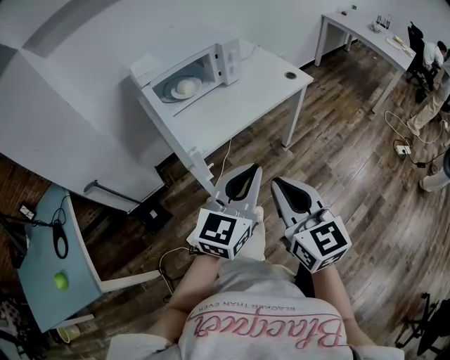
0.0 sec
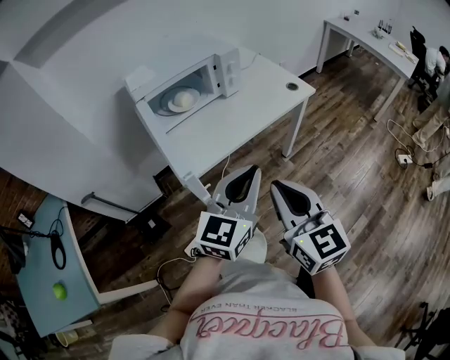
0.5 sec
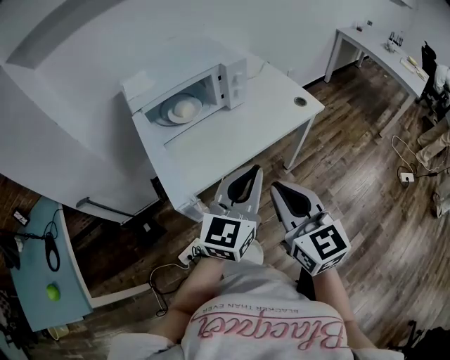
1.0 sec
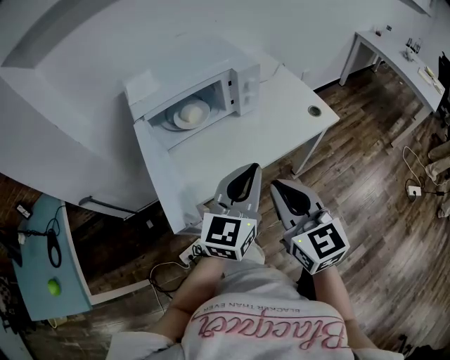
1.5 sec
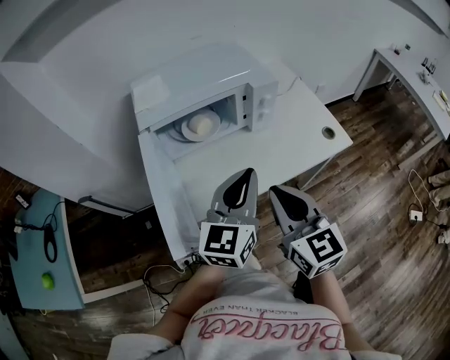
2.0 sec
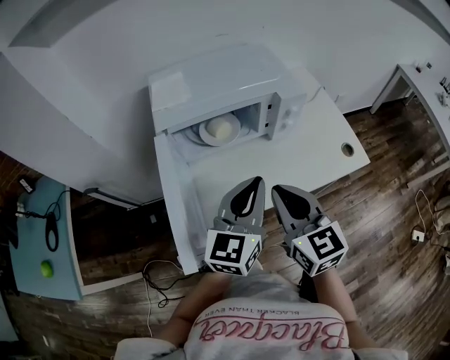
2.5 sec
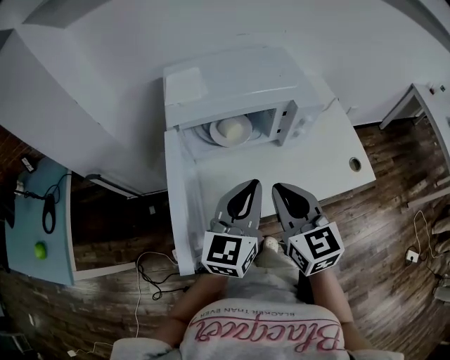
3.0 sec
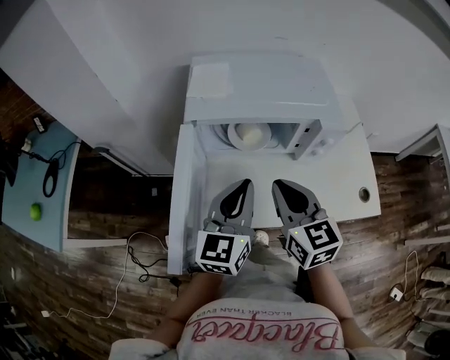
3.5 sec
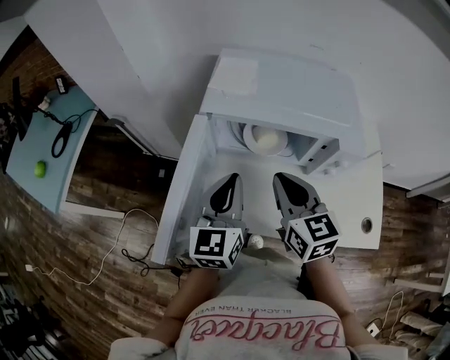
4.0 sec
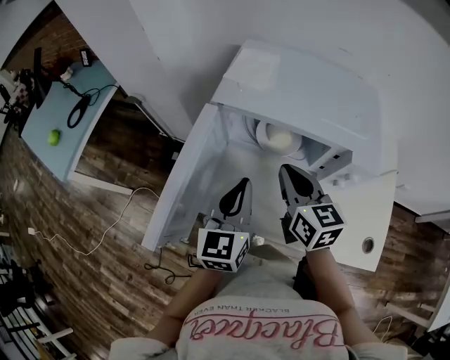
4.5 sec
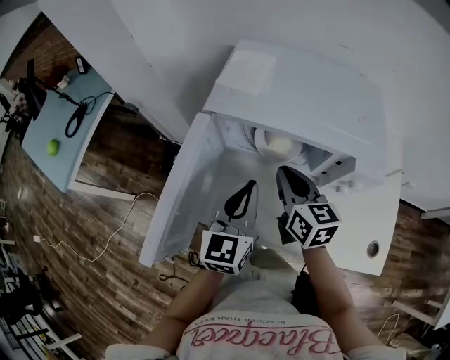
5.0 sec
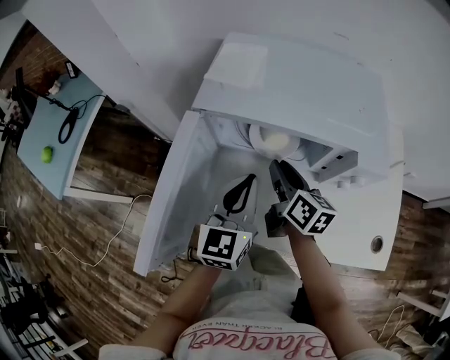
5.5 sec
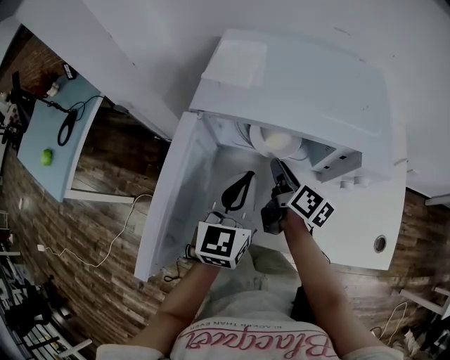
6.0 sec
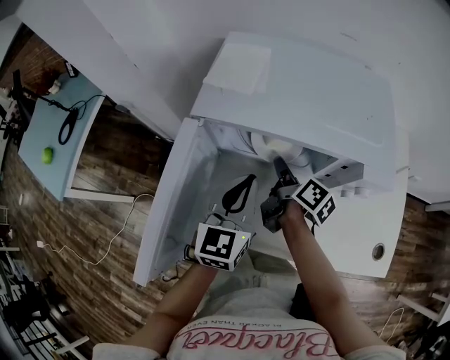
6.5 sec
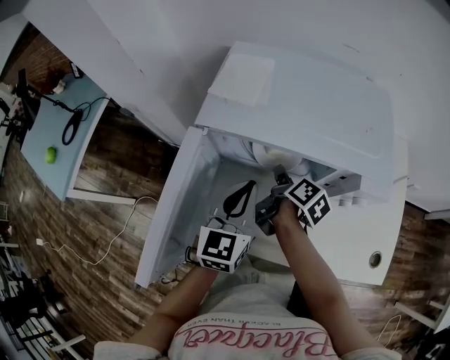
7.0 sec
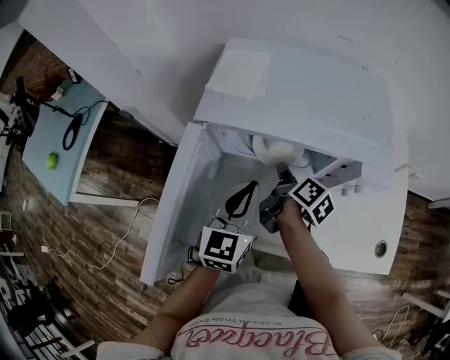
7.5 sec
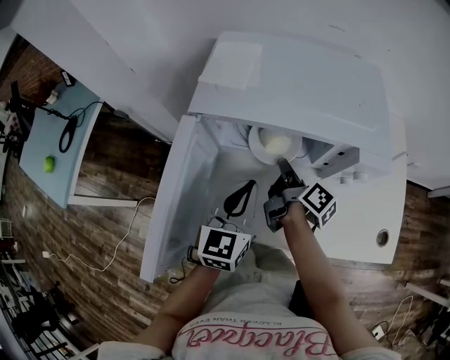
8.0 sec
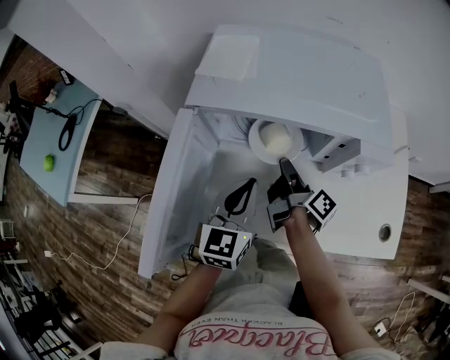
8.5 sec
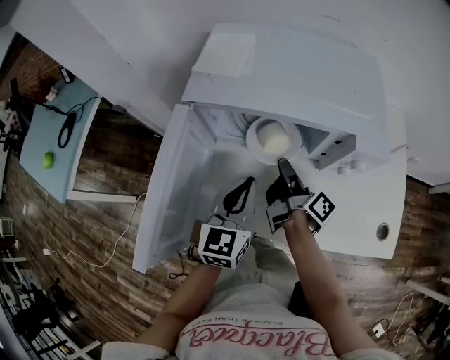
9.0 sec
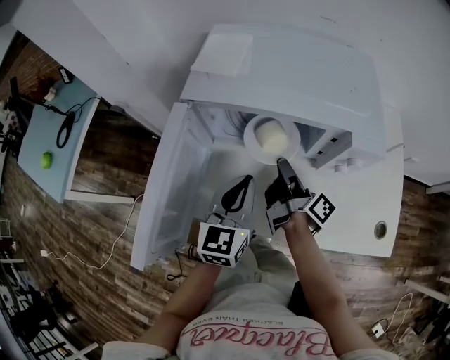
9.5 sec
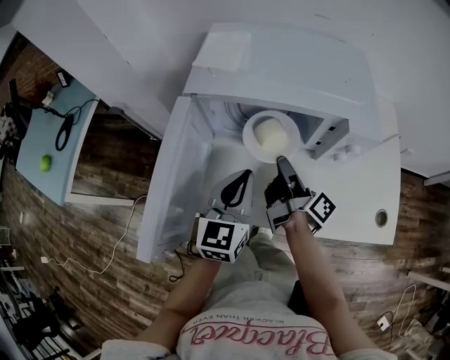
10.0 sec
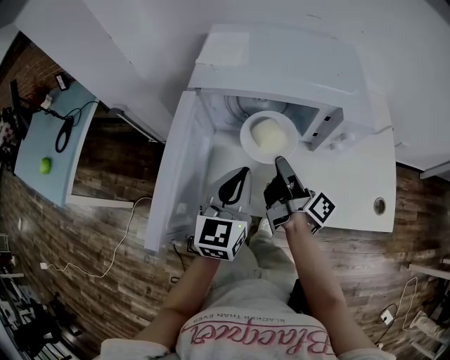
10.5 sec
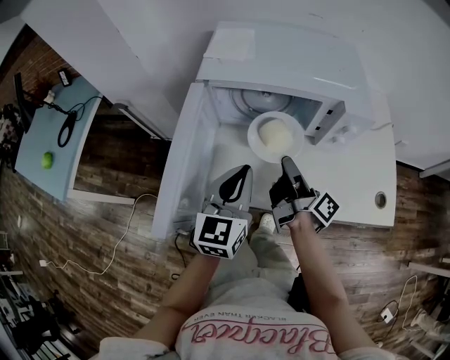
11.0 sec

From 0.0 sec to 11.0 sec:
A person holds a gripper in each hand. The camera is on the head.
From 0.0 sec to 2.0 sec: Both grippers travel together forward, approximately 30 cm. The left gripper changes its angle by approximately 20 degrees.
From 2.0 sec to 3.5 sec: The left gripper heads forward and to the left, covering some 15 cm, and swivels some 20 degrees. Meanwhile the right gripper moves forward, about 15 cm.
From 3.5 sec to 5.5 sec: The left gripper travels downward and forward by roughly 10 cm, while the right gripper is displaced forward and downward by some 20 cm, changes its angle by approximately 40 degrees, and opens.
From 5.5 sec to 7.5 sec: The right gripper shifts about 5 cm downward, and changes its angle by approximately 30 degrees.
From 7.5 sec to 9.0 sec: The right gripper turns by some 30 degrees.
From 9.0 sec to 11.0 sec: The grippers both shift backward by roughly 10 cm.

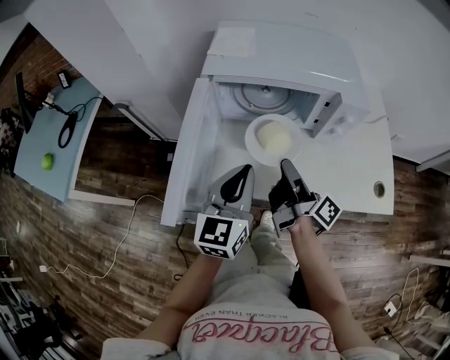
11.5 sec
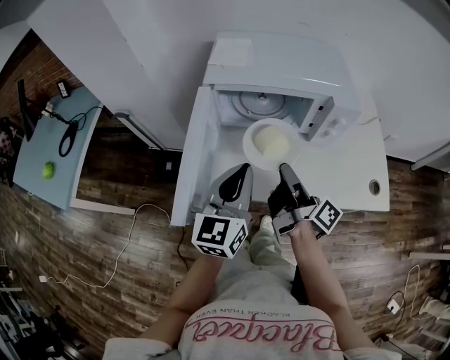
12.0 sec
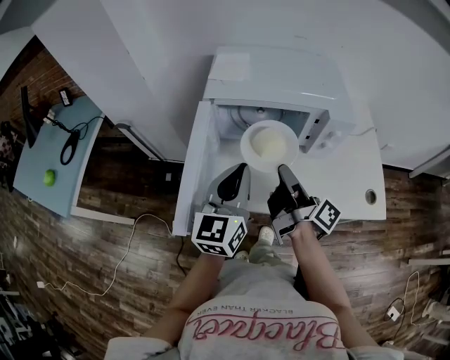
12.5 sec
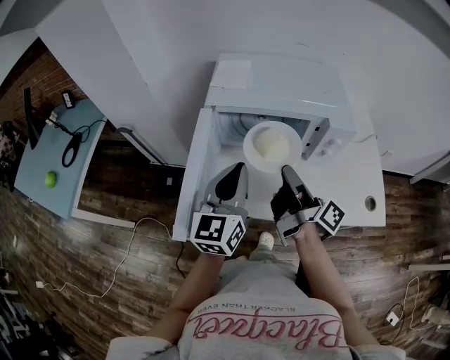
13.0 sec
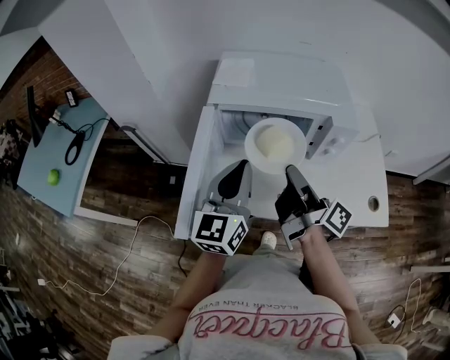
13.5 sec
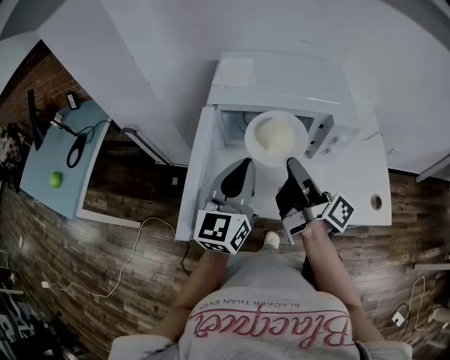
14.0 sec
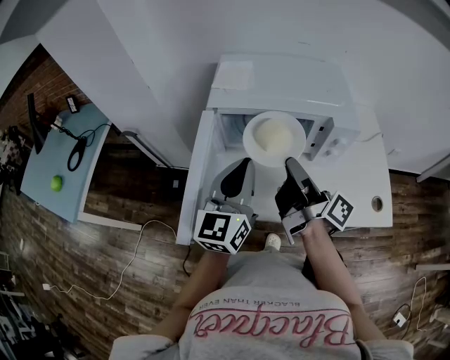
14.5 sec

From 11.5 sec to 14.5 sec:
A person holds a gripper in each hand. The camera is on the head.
From 11.5 sec to 13.0 sec: The grippers both shift upward by approximately 5 cm.
From 13.0 sec to 14.5 sec: There are only small adjustments of the grippers.

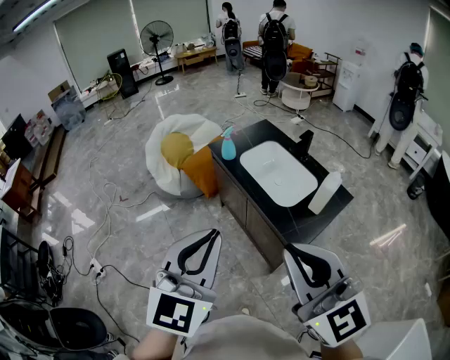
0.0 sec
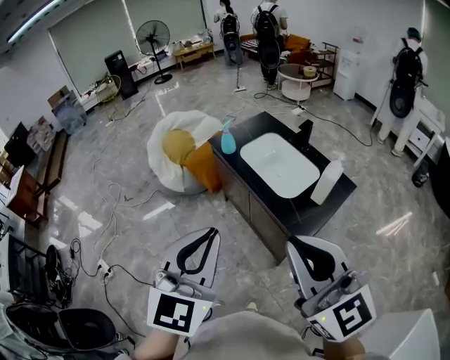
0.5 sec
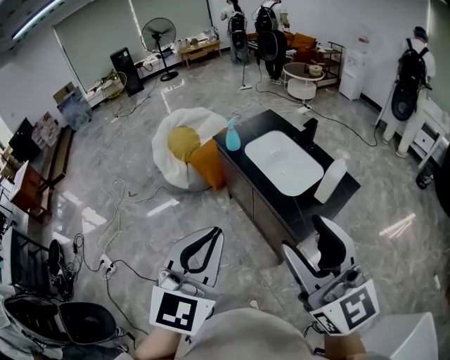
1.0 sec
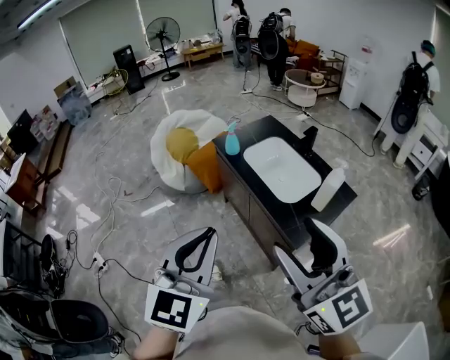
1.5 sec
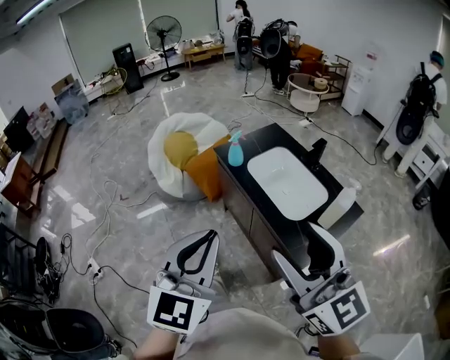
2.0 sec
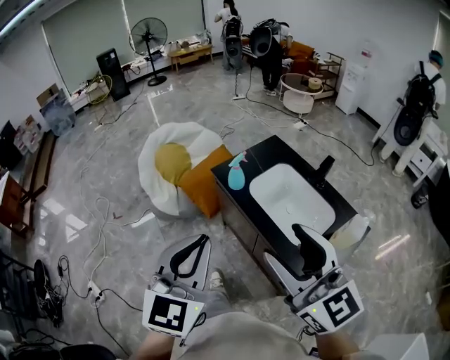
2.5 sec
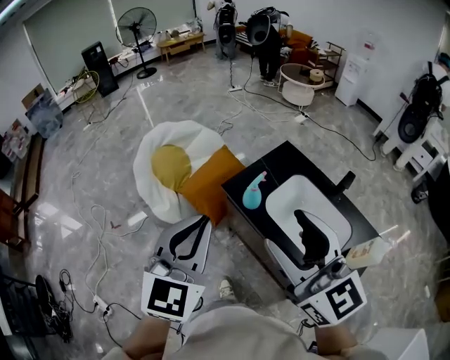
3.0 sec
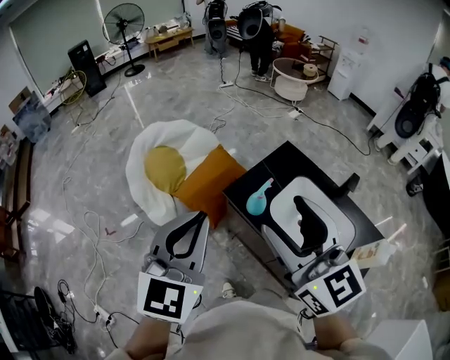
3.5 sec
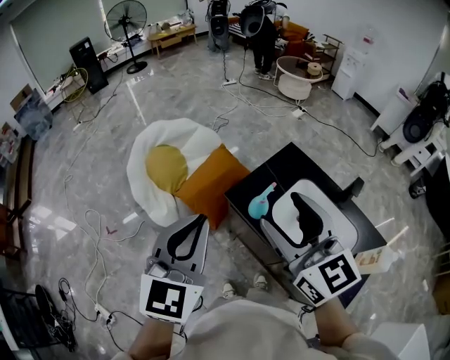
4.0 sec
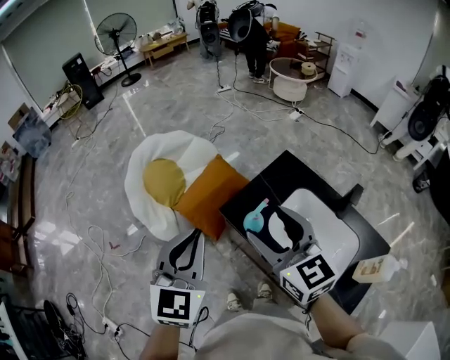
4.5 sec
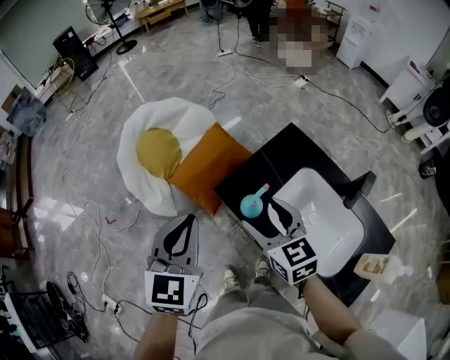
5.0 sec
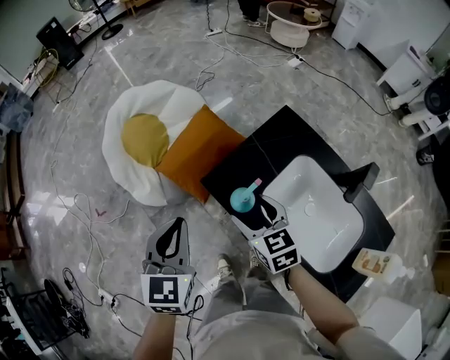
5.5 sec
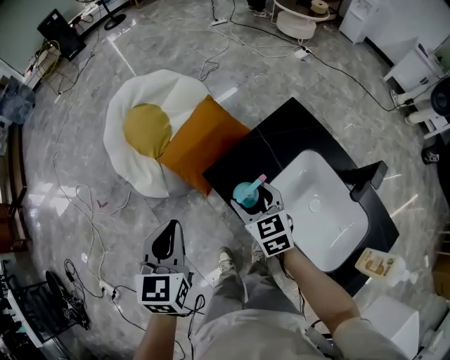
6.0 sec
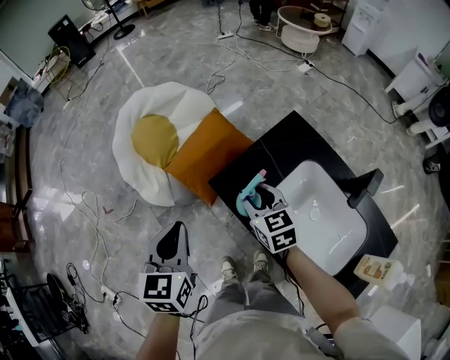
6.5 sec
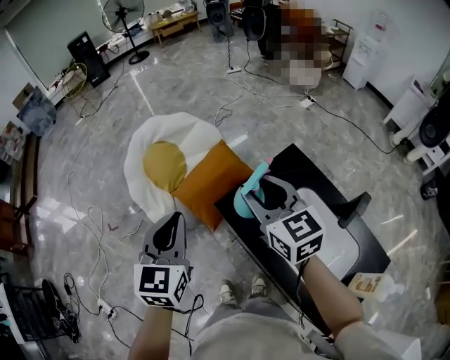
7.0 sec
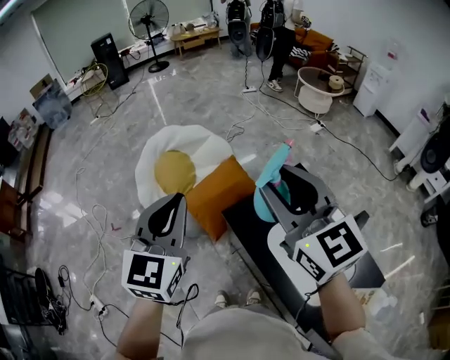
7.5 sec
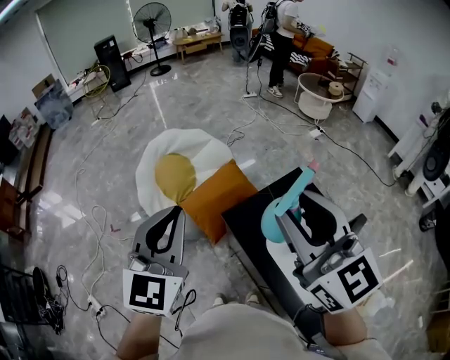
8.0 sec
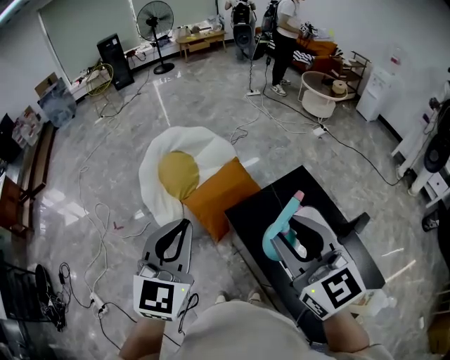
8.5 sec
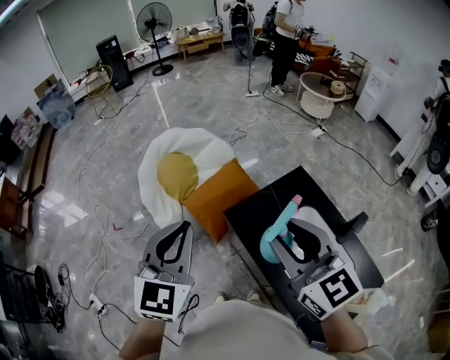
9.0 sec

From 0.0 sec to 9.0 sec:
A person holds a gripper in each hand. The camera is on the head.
From 0.0 sec to 2.0 sec: Both grippers move forward, about 10 cm. The right gripper opens.
From 2.0 sec to 4.5 sec: The pair of grippers is taken forward, approximately 50 cm.
From 4.5 sec to 7.0 sec: The left gripper goes roughly 10 cm forward, and goes downward and returns, approximately 20 cm each way; the right gripper goes some 10 cm forward, reaches some 30 cm downward, then returns, and closes.
From 7.0 sec to 9.0 sec: The right gripper heads backward and upward, covering some 15 cm, while the left gripper heads upward and backward, covering about 10 cm.

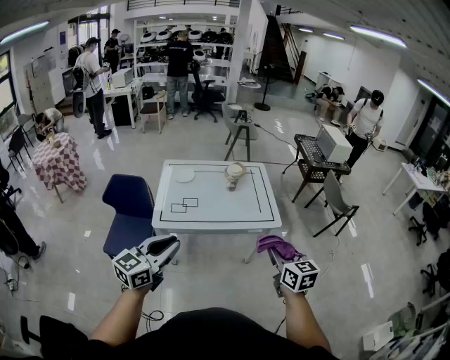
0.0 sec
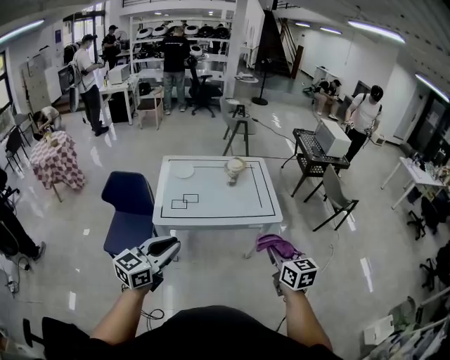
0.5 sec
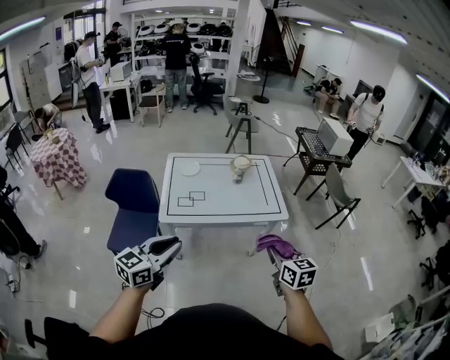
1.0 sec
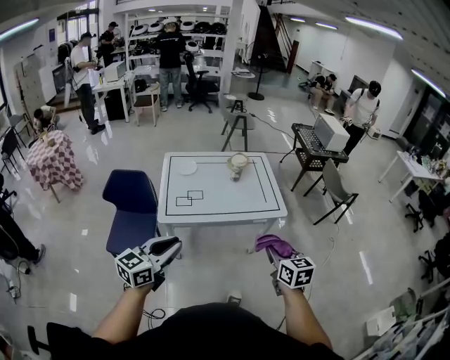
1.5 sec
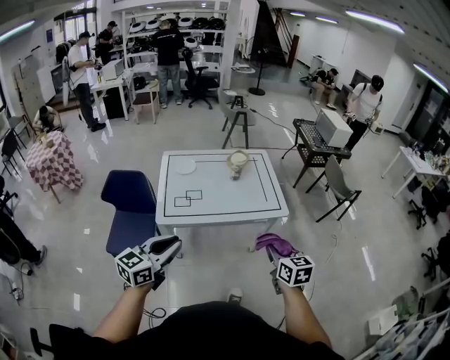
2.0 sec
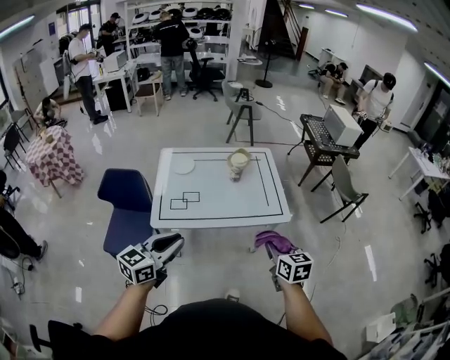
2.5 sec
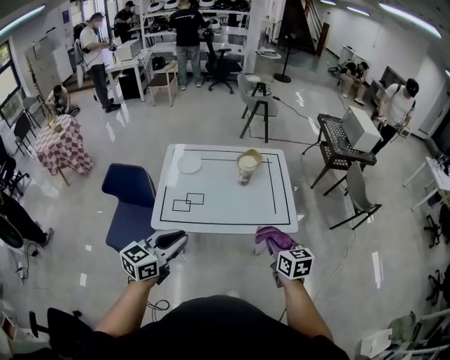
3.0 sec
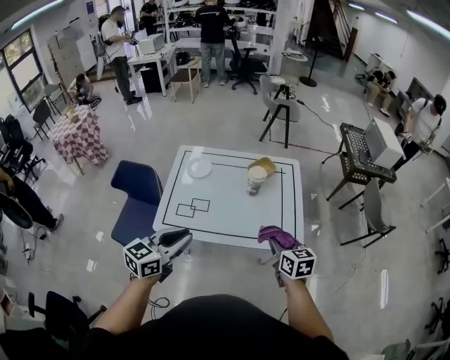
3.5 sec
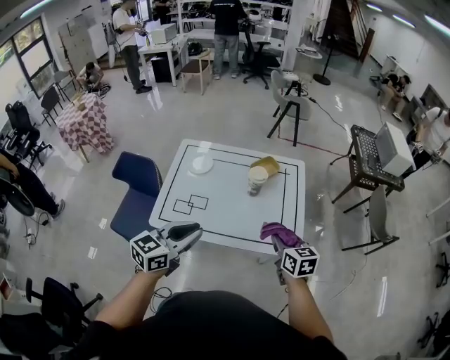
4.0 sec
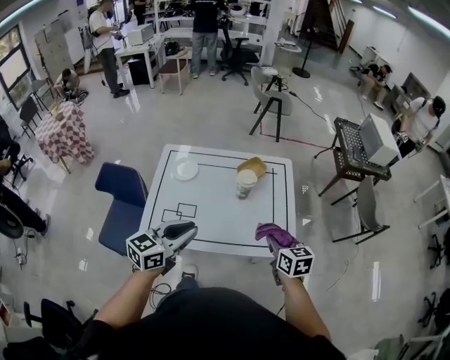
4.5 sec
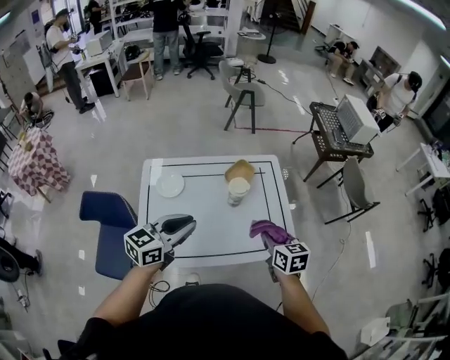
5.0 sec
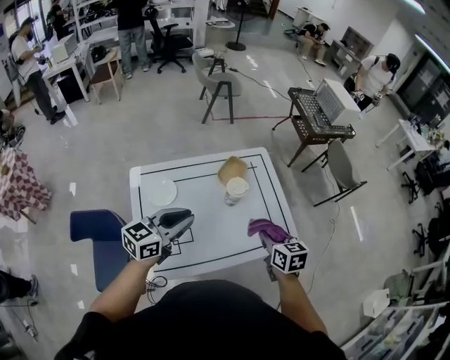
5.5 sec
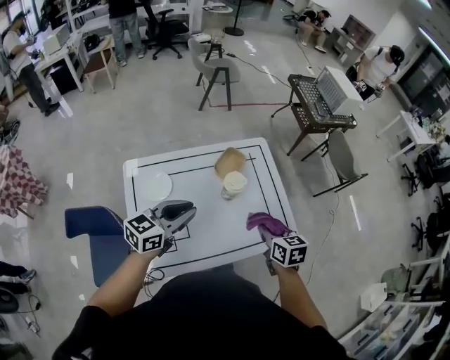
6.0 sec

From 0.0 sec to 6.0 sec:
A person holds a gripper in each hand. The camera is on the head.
From 0.0 sec to 2.0 sec: The left gripper goes roughly 10 cm to the left and downward, while the right gripper shifts about 10 cm downward and to the left.
From 2.0 sec to 4.0 sec: The right gripper is displaced forward by about 40 cm. Meanwhile the left gripper travels forward and to the right by about 35 cm.
From 4.0 sec to 6.0 sec: The right gripper moves approximately 20 cm, and swivels some 30 degrees, while the left gripper changes place by approximately 30 cm, and rotates some 30 degrees.
